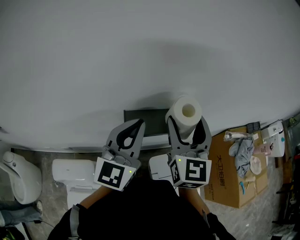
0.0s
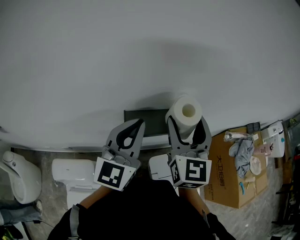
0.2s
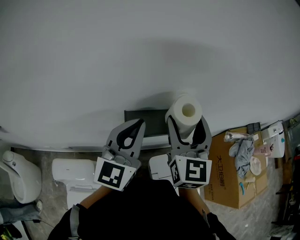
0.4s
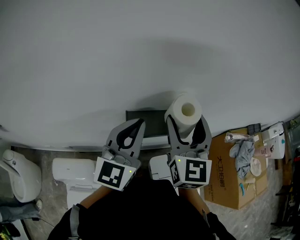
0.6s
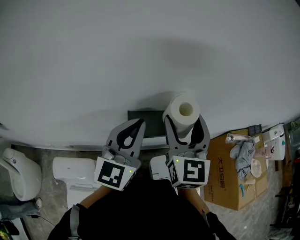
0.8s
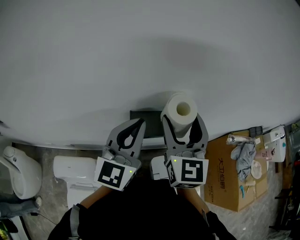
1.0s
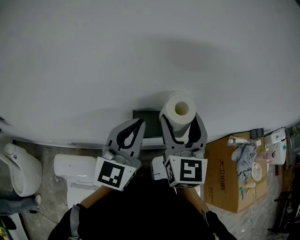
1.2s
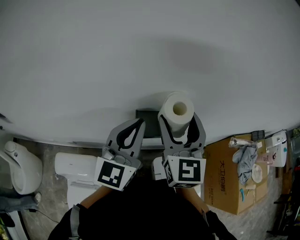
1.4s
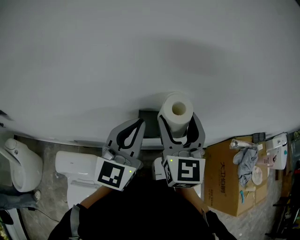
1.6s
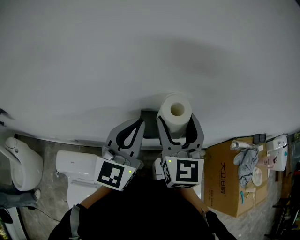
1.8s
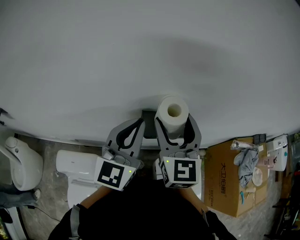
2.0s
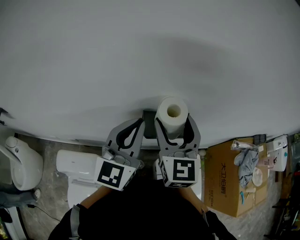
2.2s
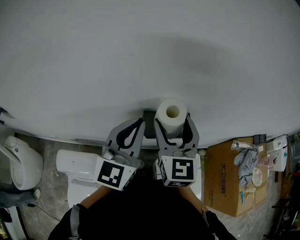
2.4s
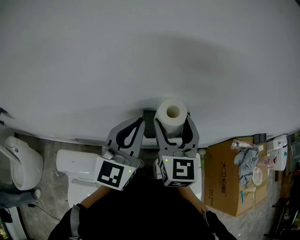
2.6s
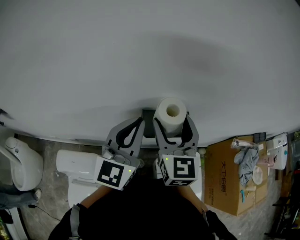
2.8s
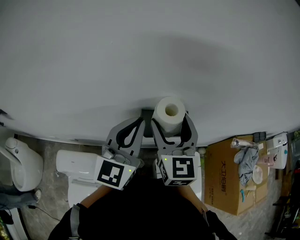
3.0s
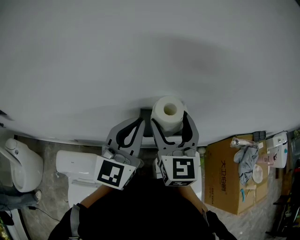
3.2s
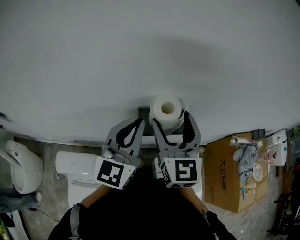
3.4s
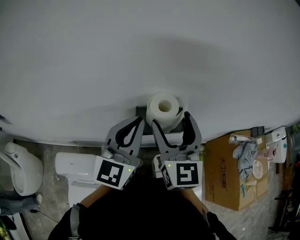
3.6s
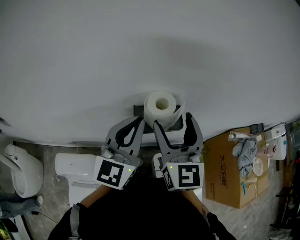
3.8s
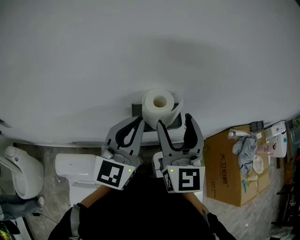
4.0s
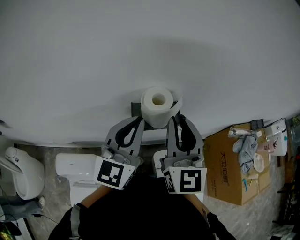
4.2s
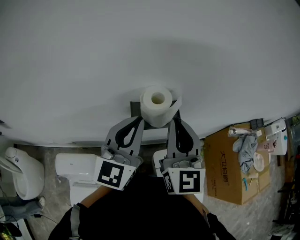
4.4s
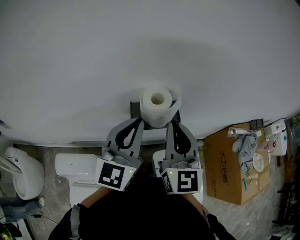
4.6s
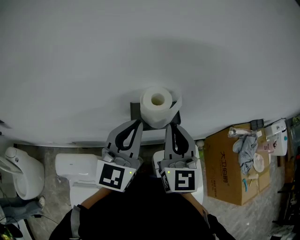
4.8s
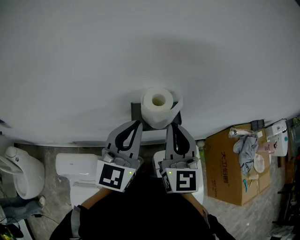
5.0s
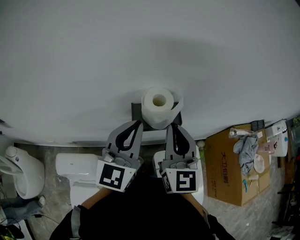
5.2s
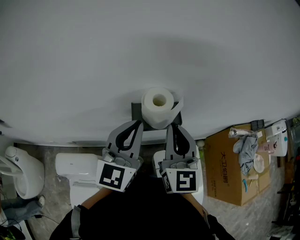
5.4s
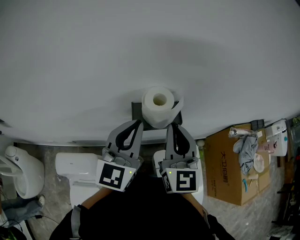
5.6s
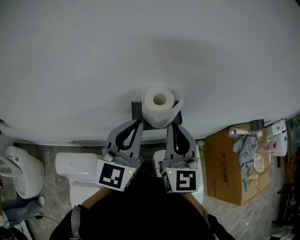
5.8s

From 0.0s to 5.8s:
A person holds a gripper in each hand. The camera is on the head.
From 0.0s to 1.4s: The right gripper moves to the left, approximately 5 cm.
From 1.4s to 2.8s: The grippers make only small movements.
From 2.8s to 4.4s: The right gripper goes approximately 5 cm backward and to the right, and closes its fingers.
From 4.4s to 5.8s: The grippers stay close to where they were, moving slightly.

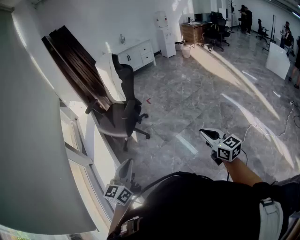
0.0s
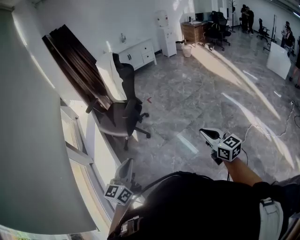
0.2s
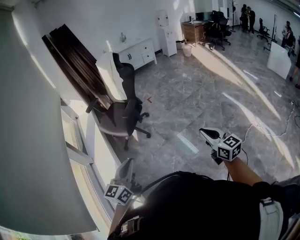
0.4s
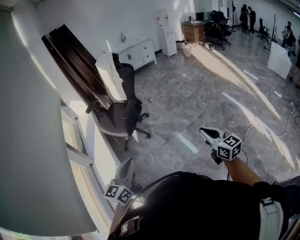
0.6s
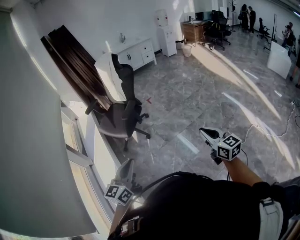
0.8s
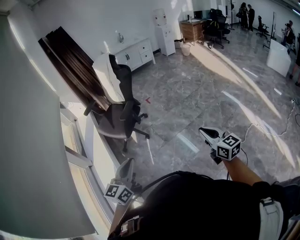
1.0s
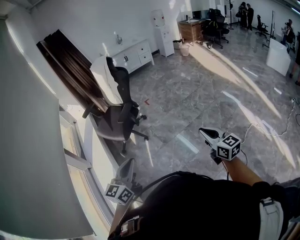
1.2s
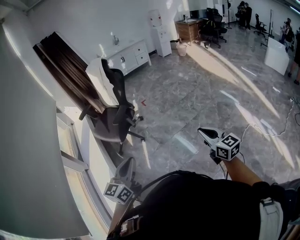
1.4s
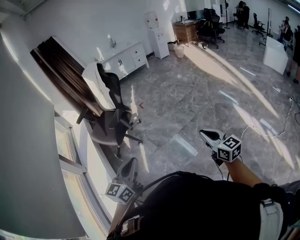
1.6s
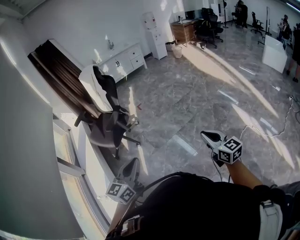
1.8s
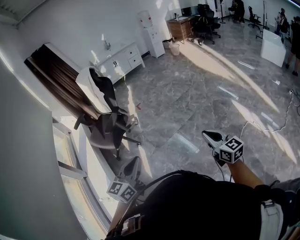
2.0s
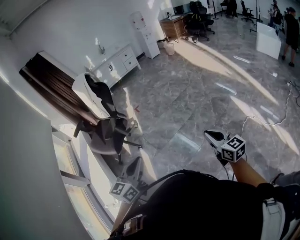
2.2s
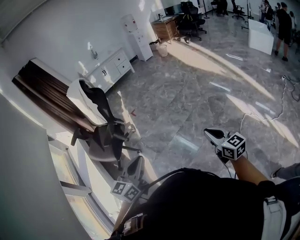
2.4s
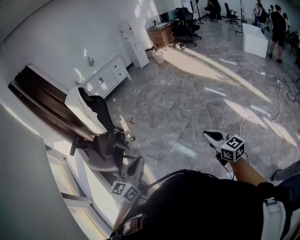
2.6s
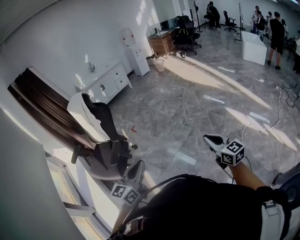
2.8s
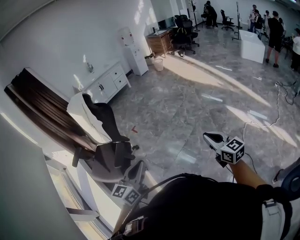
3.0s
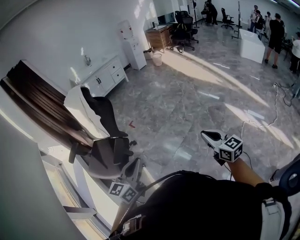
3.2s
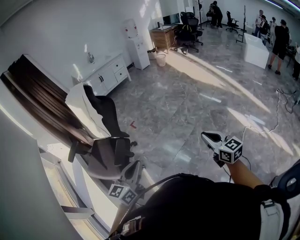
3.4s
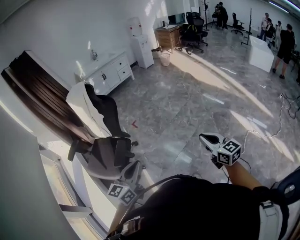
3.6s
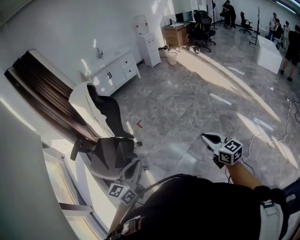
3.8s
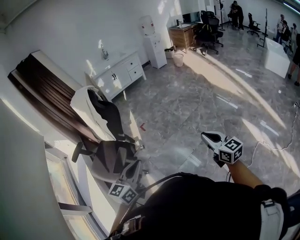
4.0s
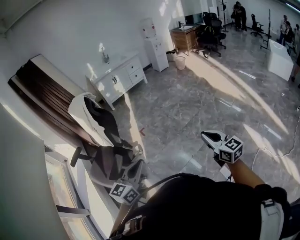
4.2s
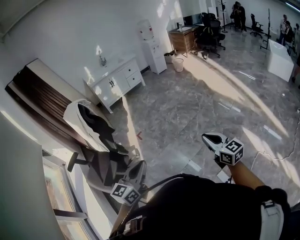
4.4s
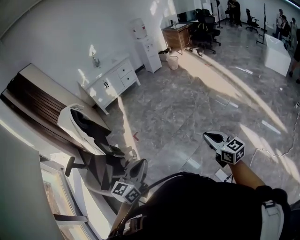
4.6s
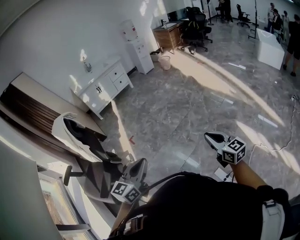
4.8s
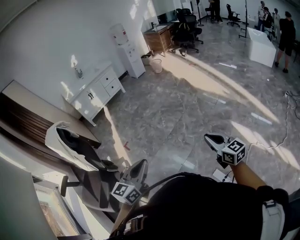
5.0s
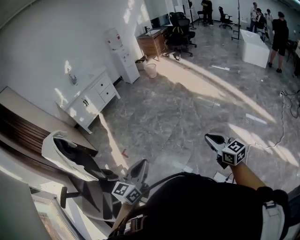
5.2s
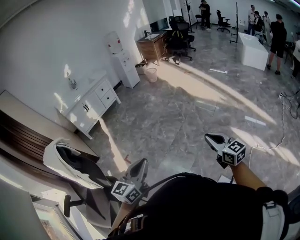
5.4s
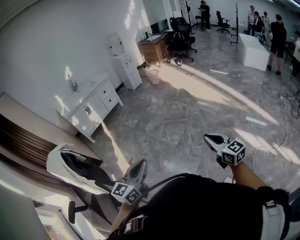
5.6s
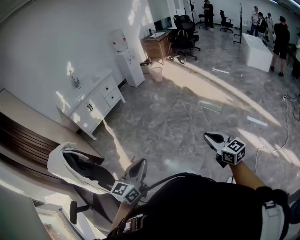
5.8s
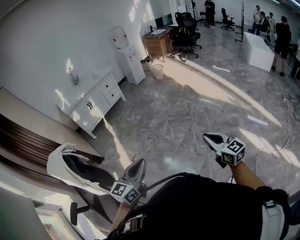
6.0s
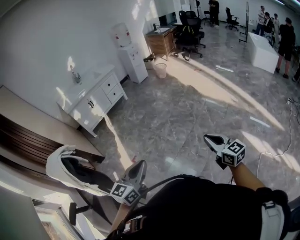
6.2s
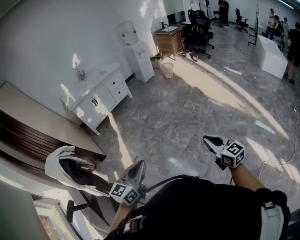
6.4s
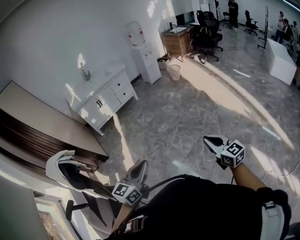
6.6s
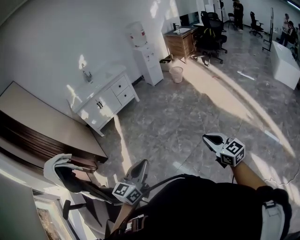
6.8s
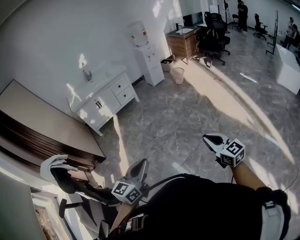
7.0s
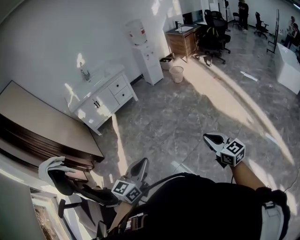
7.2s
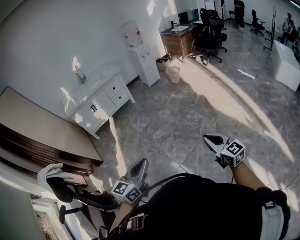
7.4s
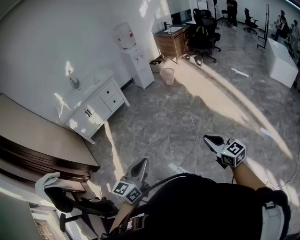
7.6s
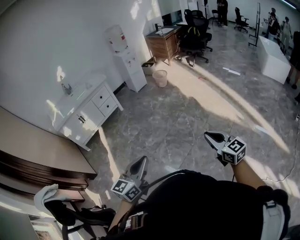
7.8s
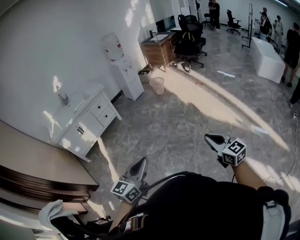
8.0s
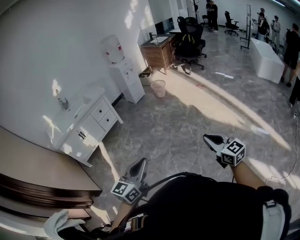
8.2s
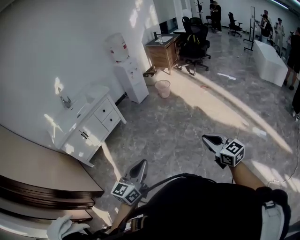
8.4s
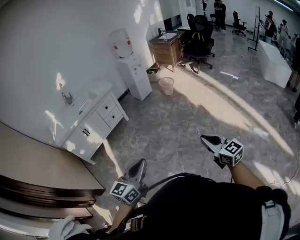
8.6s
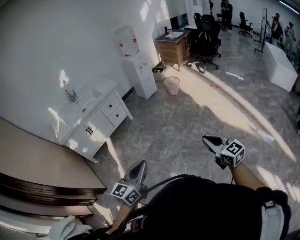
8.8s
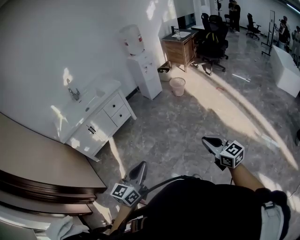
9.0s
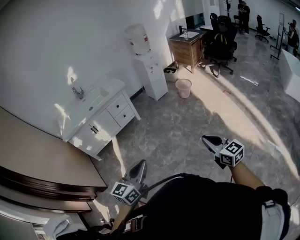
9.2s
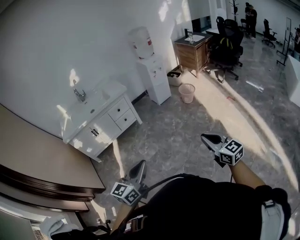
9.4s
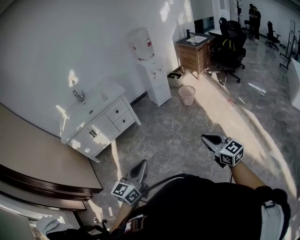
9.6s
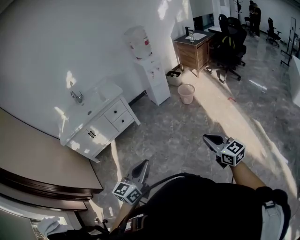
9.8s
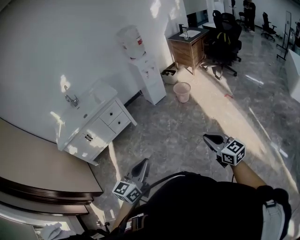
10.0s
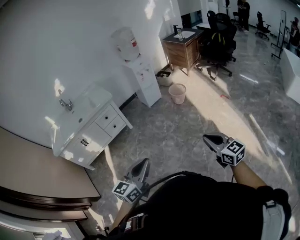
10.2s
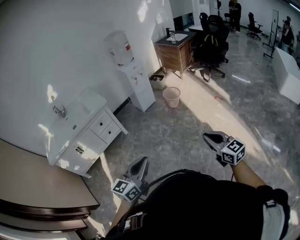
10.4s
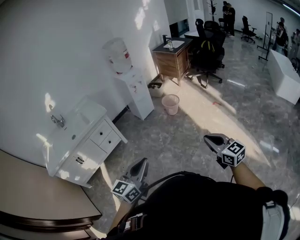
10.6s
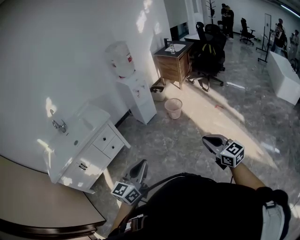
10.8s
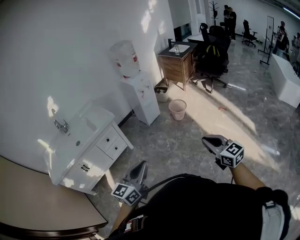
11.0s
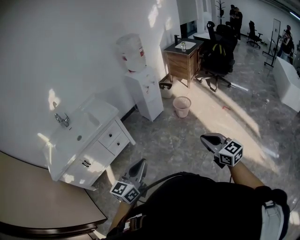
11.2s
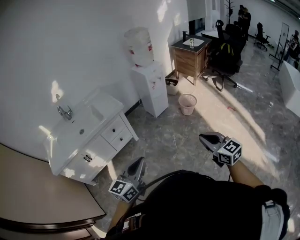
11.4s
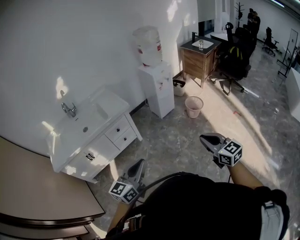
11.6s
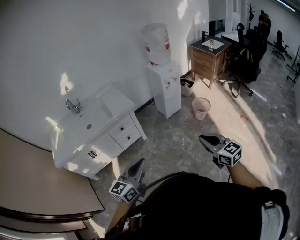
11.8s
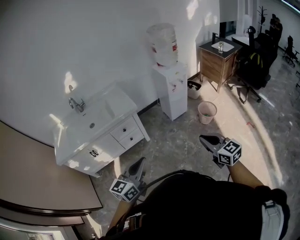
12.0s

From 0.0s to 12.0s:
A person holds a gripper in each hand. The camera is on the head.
From 0.0s to 1.6s: The grippers both shift to the right by about 15 cm.
From 1.6s to 3.0s: Both grippers travel together forward and to the left, about 25 cm.
From 3.0s to 4.4s: The right gripper goes some 35 cm forward; the left gripper moves forward and to the right, about 30 cm.
From 4.4s to 6.0s: The two grippers go approximately 35 cm forward and to the left.
From 6.0s to 7.6s: The pair of grippers is taken forward and to the right, some 40 cm.
From 7.6s to 9.0s: Both grippers move forward and to the left, about 35 cm.
From 9.0s to 10.4s: Both grippers move forward and to the right, about 35 cm.
From 10.4s to 12.0s: The grippers both shift forward and to the left by about 40 cm.

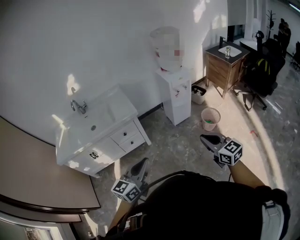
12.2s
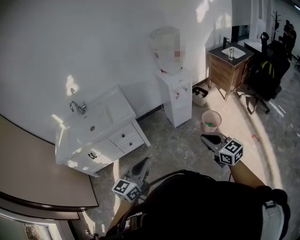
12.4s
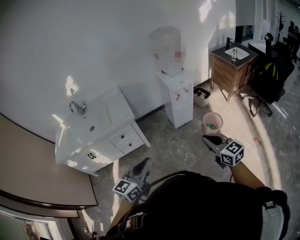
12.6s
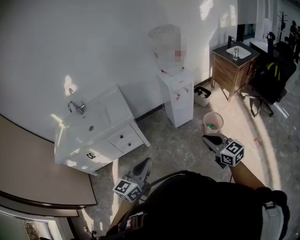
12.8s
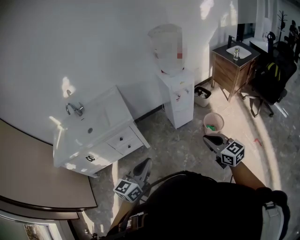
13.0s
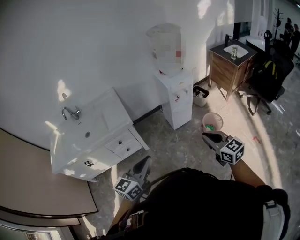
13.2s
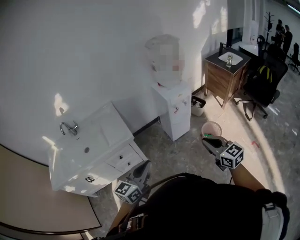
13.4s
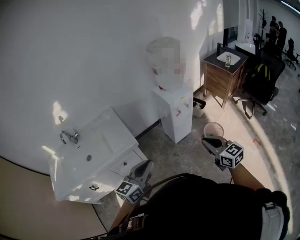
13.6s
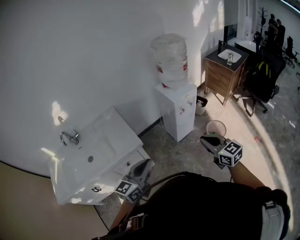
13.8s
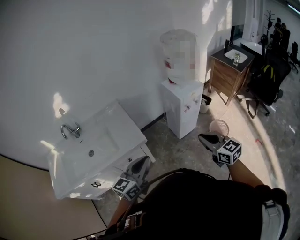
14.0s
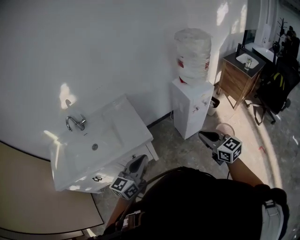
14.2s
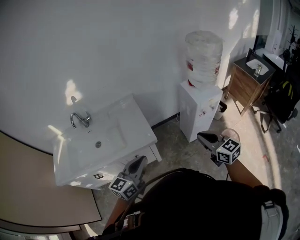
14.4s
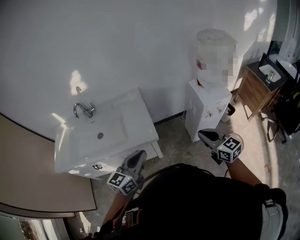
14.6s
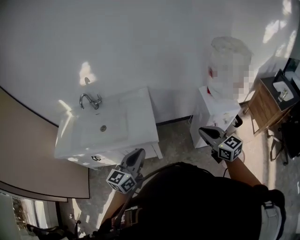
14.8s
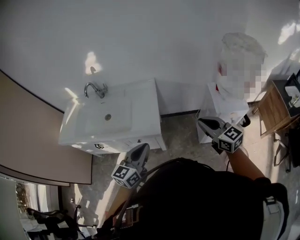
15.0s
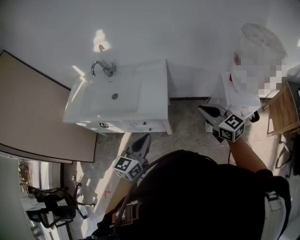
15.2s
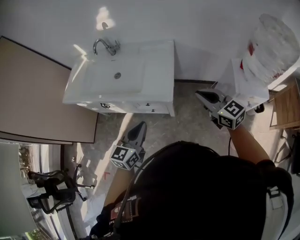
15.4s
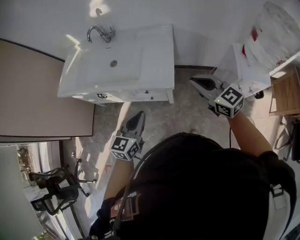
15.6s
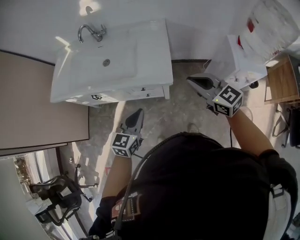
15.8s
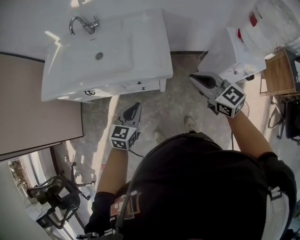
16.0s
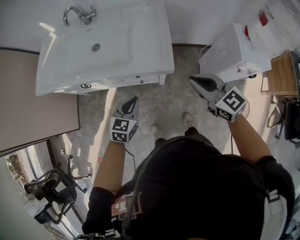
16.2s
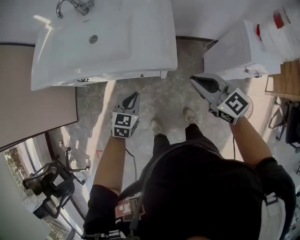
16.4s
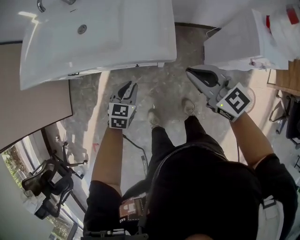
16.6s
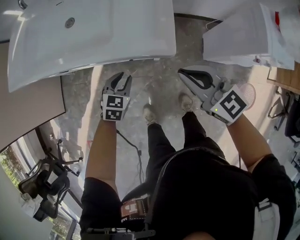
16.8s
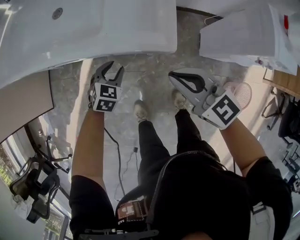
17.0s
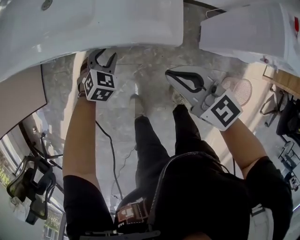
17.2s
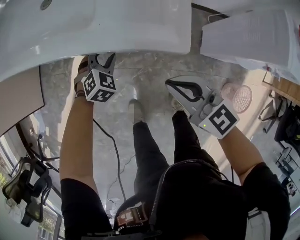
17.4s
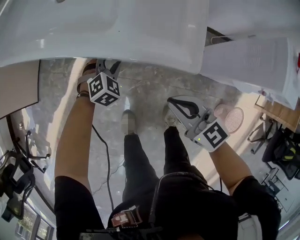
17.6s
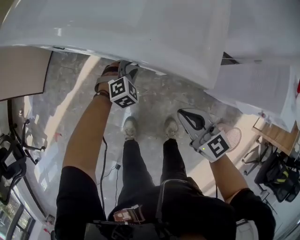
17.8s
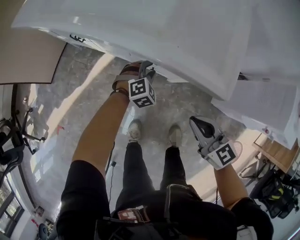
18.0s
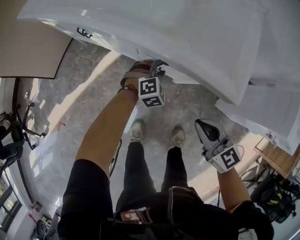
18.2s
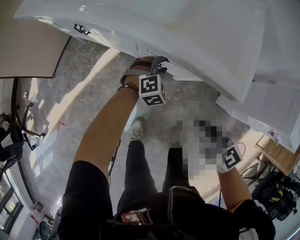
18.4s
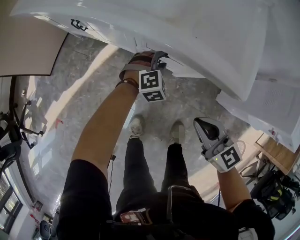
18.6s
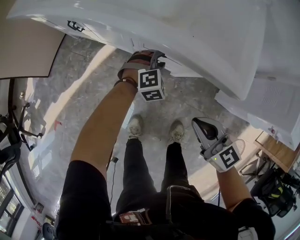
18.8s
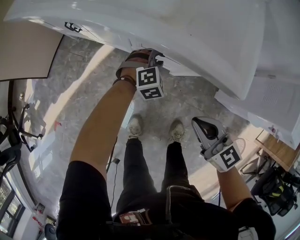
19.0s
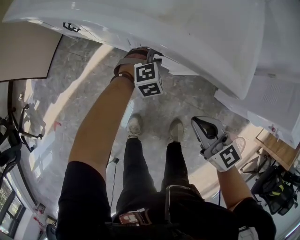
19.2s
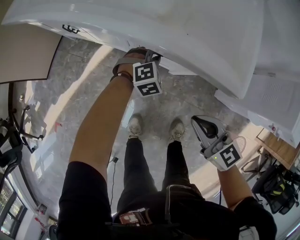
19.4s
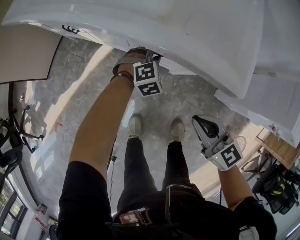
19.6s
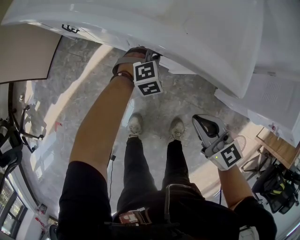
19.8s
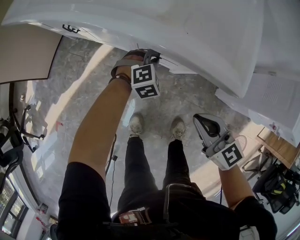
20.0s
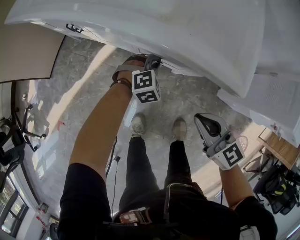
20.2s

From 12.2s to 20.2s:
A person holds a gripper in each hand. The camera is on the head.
From 12.2s to 13.8s: The two grippers go about 30 cm forward.
From 13.8s to 15.4s: The right gripper moves some 35 cm, and turns by roughly 50 degrees, while the left gripper moves some 15 cm, and changes its angle by approximately 50 degrees.
From 15.4s to 17.0s: The right gripper moves downward and to the left, approximately 30 cm. The left gripper shifts some 40 cm downward, tilts its fingers approximately 40 degrees downward, and opens up.
From 17.0s to 18.6s: The right gripper is displaced downward and to the left by approximately 15 cm, while the left gripper shifts approximately 10 cm downward and forward, and rotates some 30 degrees.
From 18.6s to 20.2s: The left gripper closes up.
